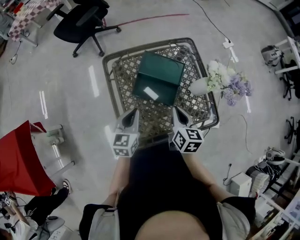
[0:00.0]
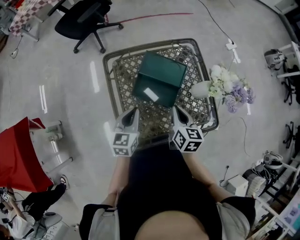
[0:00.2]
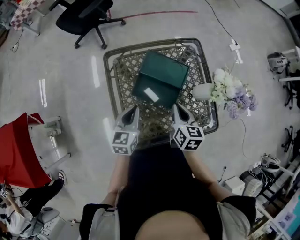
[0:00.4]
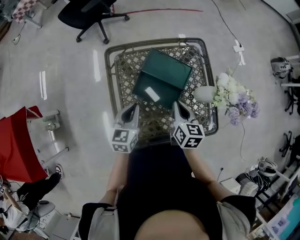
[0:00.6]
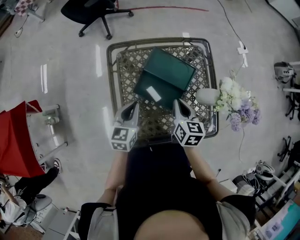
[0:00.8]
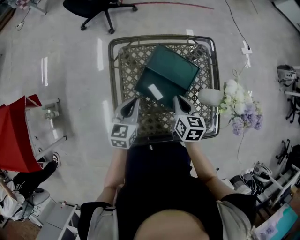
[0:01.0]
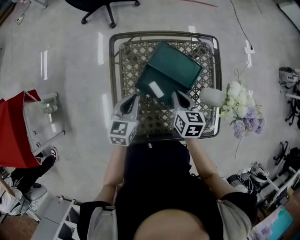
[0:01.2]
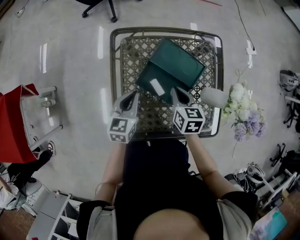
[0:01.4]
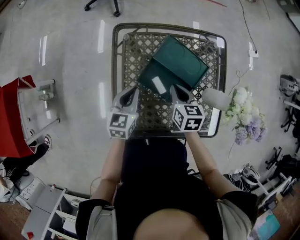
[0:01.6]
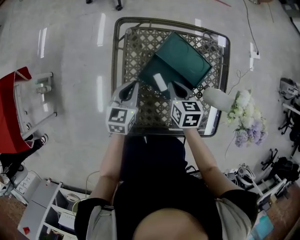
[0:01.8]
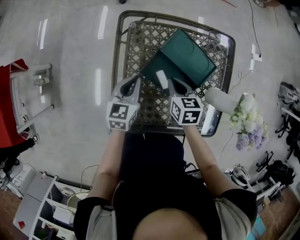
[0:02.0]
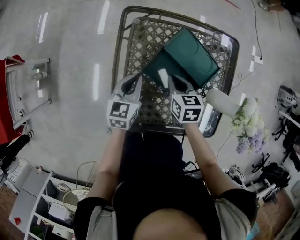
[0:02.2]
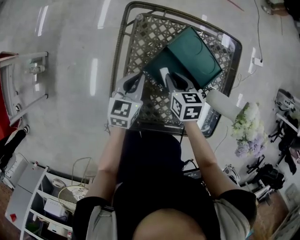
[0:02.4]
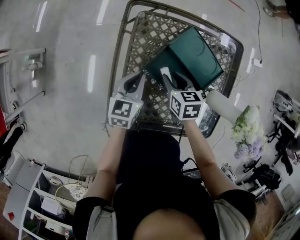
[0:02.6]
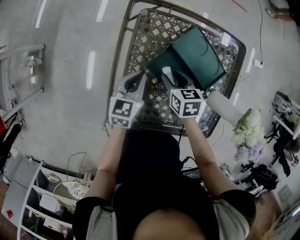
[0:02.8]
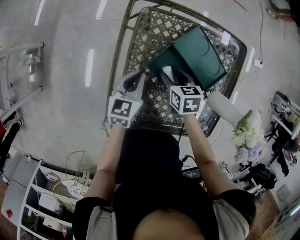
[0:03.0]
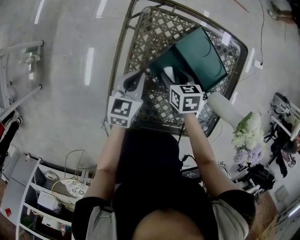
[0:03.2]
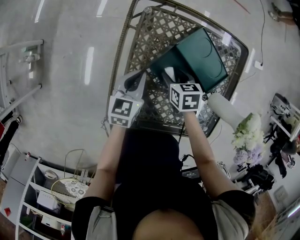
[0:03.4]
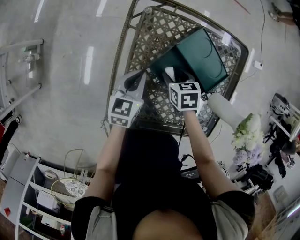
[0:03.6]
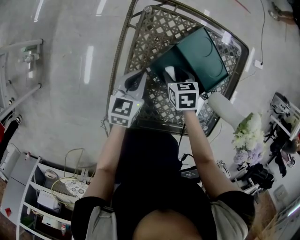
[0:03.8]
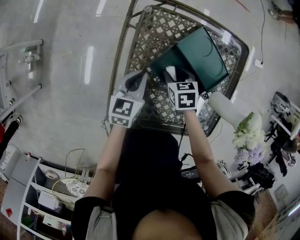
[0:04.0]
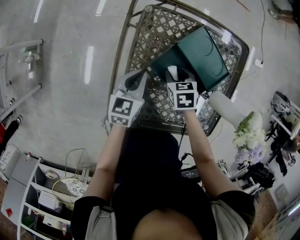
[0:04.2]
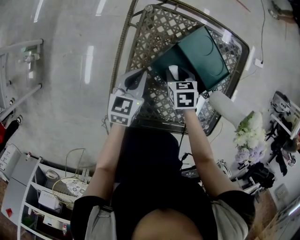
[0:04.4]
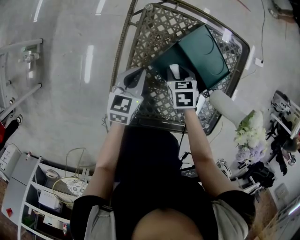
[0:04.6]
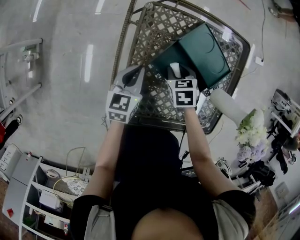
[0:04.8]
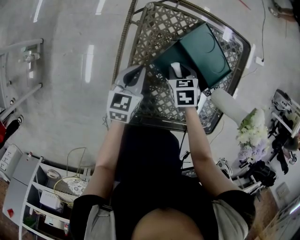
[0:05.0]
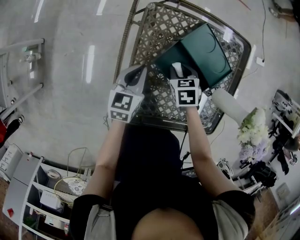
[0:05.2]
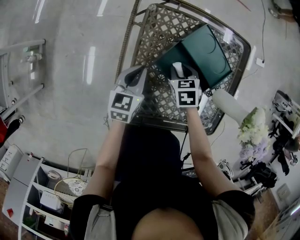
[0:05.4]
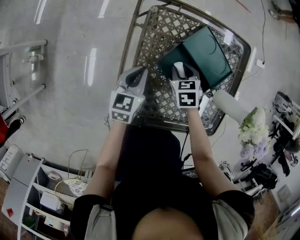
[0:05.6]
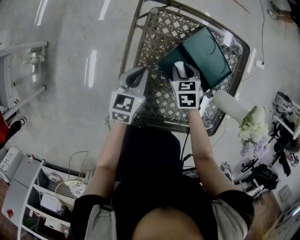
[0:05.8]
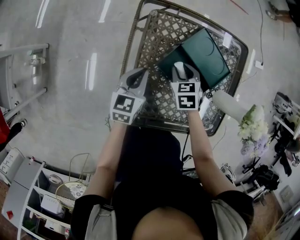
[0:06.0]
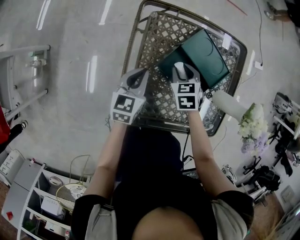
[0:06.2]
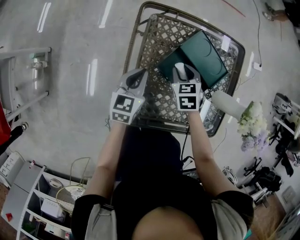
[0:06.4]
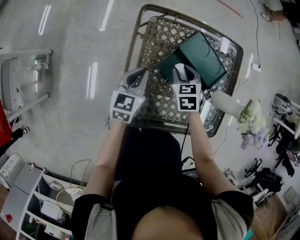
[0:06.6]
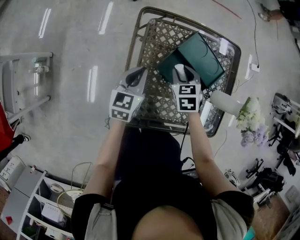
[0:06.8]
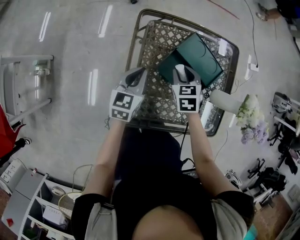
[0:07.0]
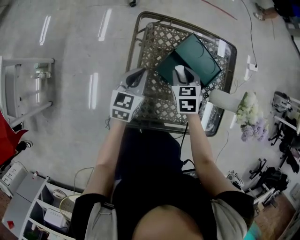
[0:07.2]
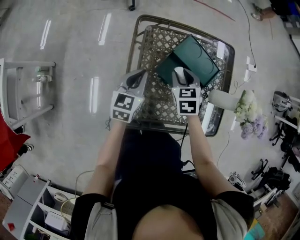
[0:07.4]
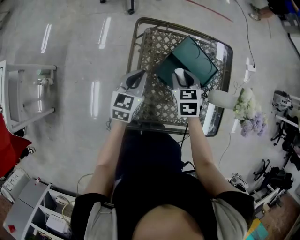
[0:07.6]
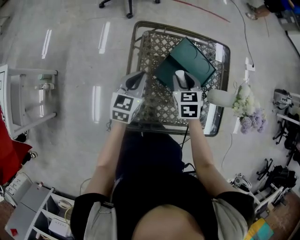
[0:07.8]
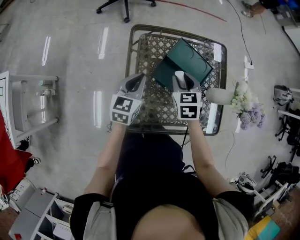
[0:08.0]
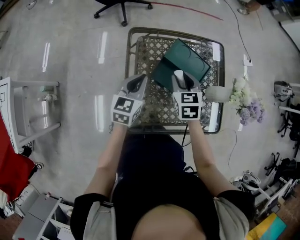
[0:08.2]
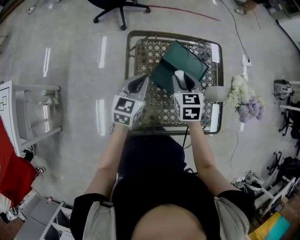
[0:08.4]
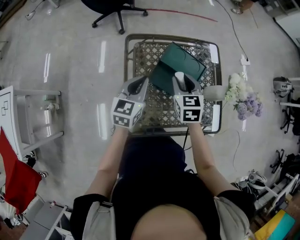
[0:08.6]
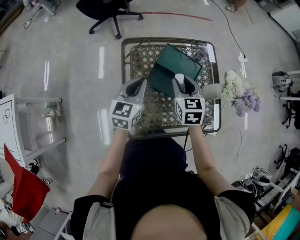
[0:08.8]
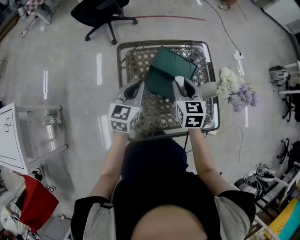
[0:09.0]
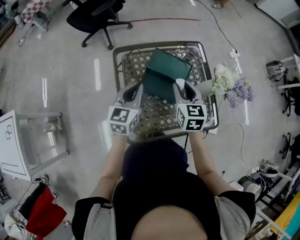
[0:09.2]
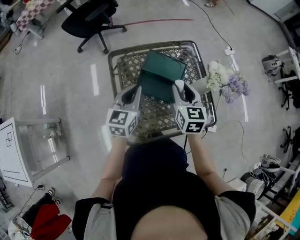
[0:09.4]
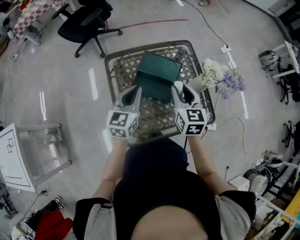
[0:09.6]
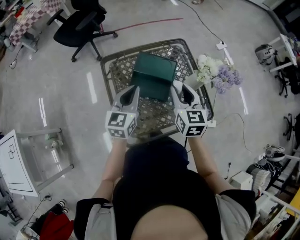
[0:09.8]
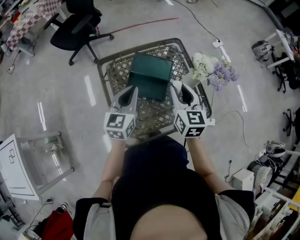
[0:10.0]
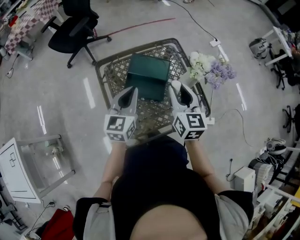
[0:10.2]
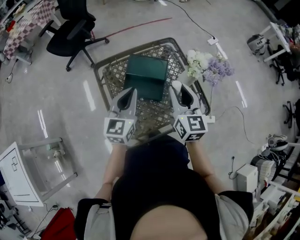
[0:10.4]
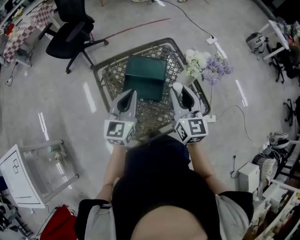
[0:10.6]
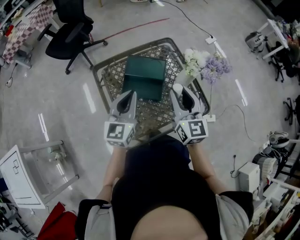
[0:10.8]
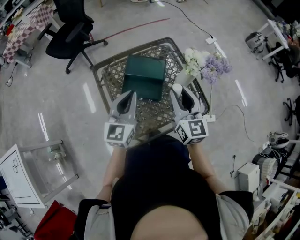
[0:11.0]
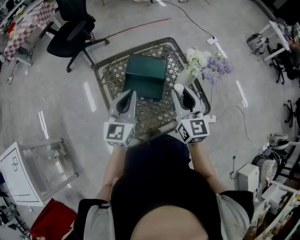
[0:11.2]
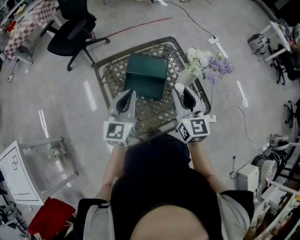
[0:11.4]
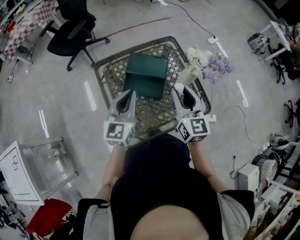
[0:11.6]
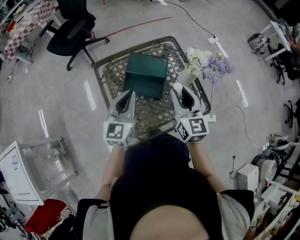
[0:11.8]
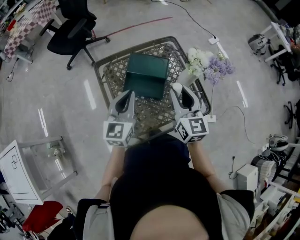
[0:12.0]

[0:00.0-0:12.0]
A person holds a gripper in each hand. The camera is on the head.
0:00.0 to 0:01.6: The right gripper moves forward and downward, approximately 15 cm, and changes its angle by about 30 degrees. Meanwhile the left gripper moves downward and forward, roughly 10 cm.
0:01.6 to 0:03.0: The left gripper is displaced downward by about 5 cm. Meanwhile the right gripper is displaced downward and to the left by approximately 10 cm, swivels roughly 20 degrees, and opens up.
0:03.0 to 0:04.4: The grippers stay close to where they were, moving slightly.
0:04.4 to 0:06.0: The grippers move only a little.
0:06.0 to 0:07.6: The grippers both shift upward by roughly 10 cm.
0:07.6 to 0:09.0: The grippers both shift upward and to the right by some 10 cm. The right gripper swivels some 20 degrees.
0:09.0 to 0:10.4: The left gripper heads to the right and upward, covering some 10 cm. The right gripper travels to the right, upward and backward by about 15 cm, and changes its angle by roughly 30 degrees.
0:10.4 to 0:12.0: The grippers stay close to where they were, moving slightly.

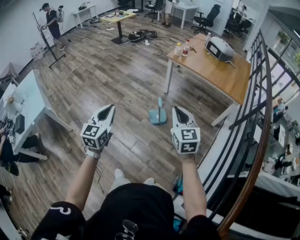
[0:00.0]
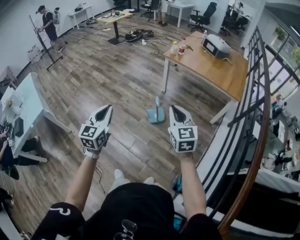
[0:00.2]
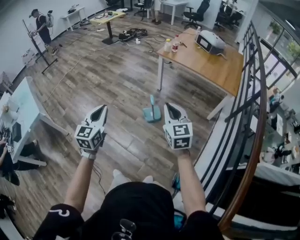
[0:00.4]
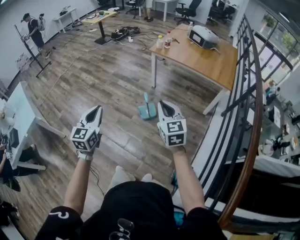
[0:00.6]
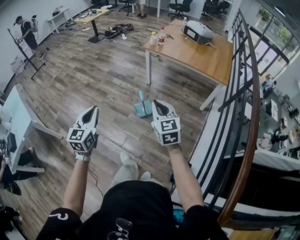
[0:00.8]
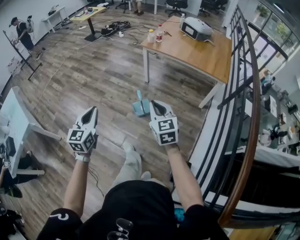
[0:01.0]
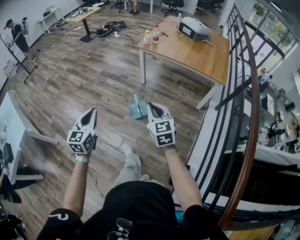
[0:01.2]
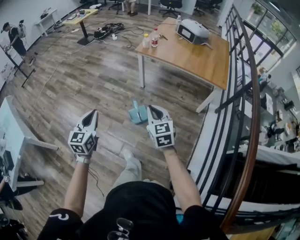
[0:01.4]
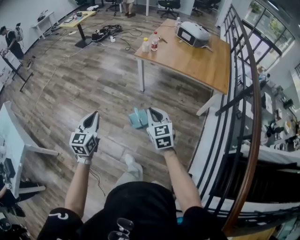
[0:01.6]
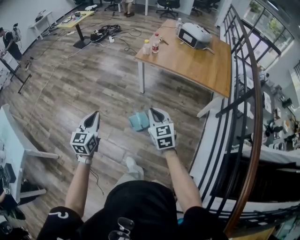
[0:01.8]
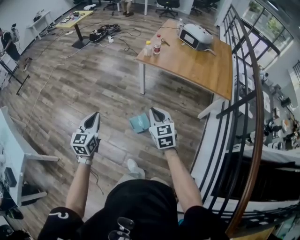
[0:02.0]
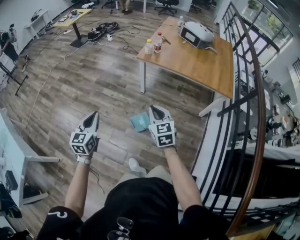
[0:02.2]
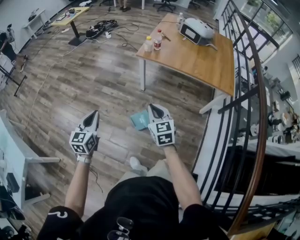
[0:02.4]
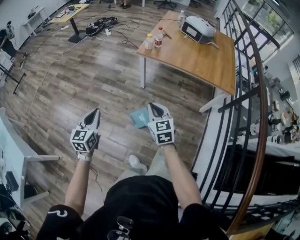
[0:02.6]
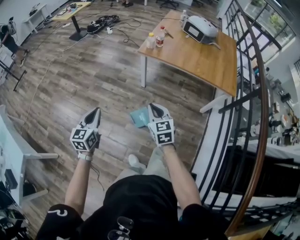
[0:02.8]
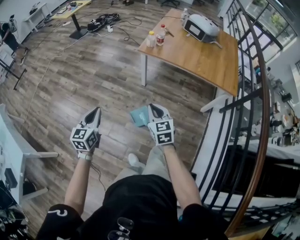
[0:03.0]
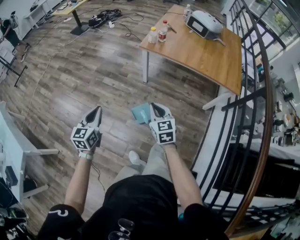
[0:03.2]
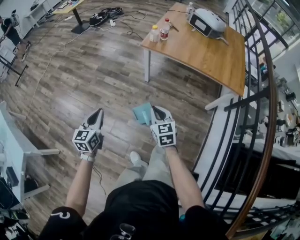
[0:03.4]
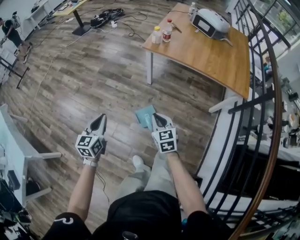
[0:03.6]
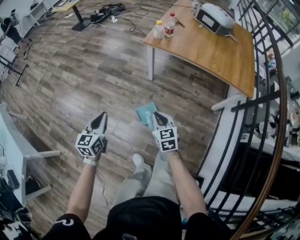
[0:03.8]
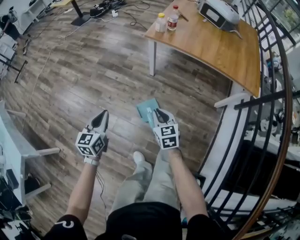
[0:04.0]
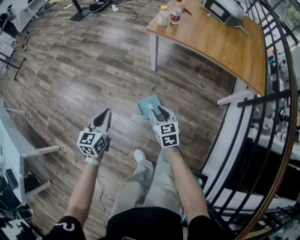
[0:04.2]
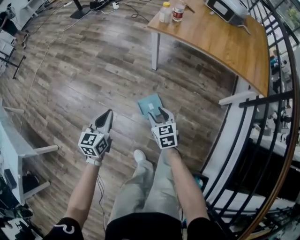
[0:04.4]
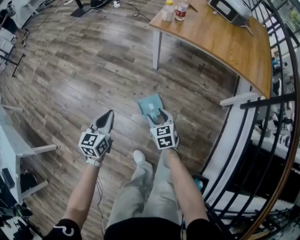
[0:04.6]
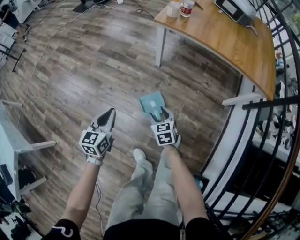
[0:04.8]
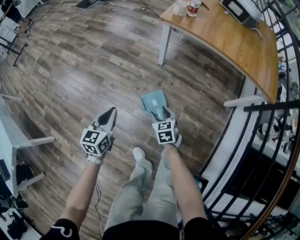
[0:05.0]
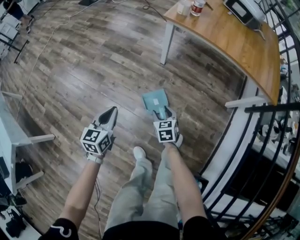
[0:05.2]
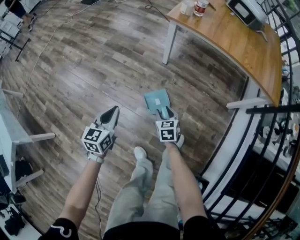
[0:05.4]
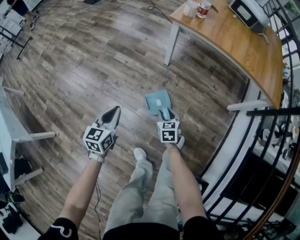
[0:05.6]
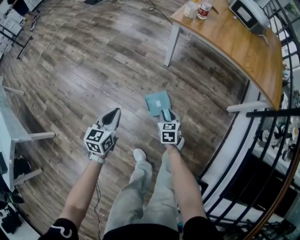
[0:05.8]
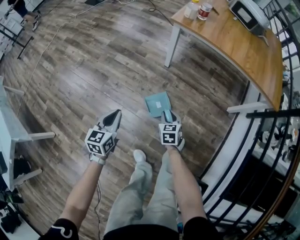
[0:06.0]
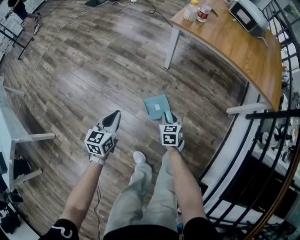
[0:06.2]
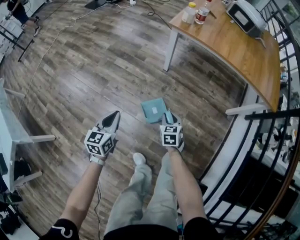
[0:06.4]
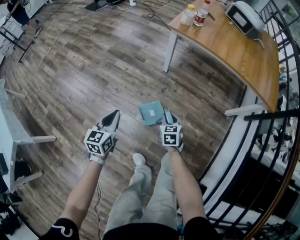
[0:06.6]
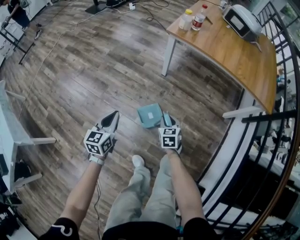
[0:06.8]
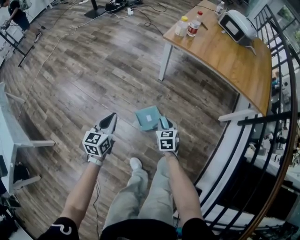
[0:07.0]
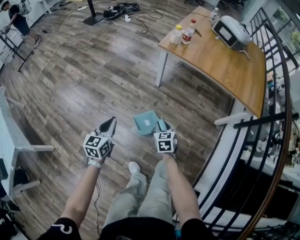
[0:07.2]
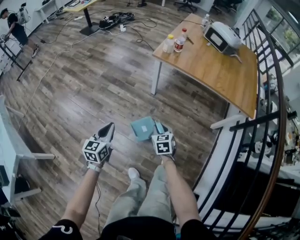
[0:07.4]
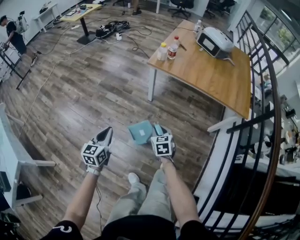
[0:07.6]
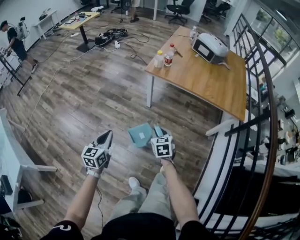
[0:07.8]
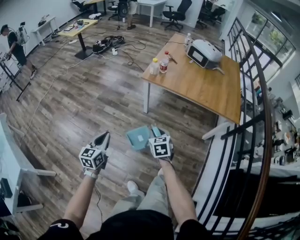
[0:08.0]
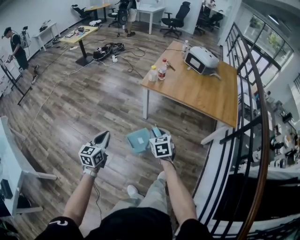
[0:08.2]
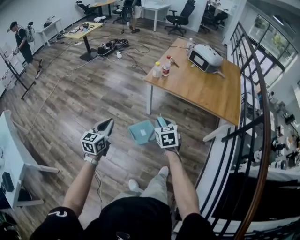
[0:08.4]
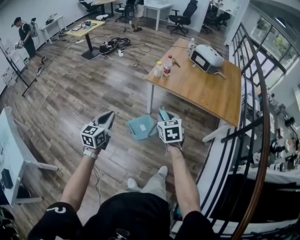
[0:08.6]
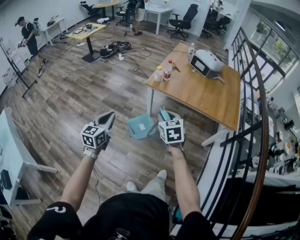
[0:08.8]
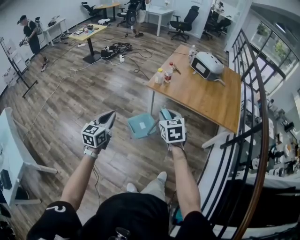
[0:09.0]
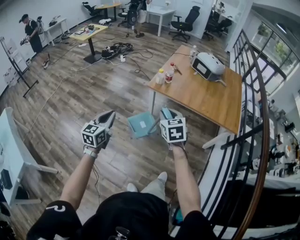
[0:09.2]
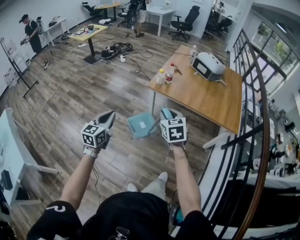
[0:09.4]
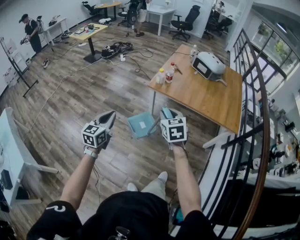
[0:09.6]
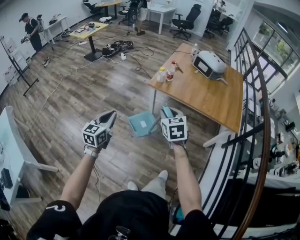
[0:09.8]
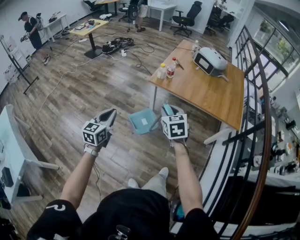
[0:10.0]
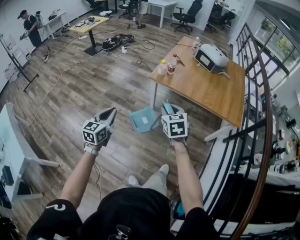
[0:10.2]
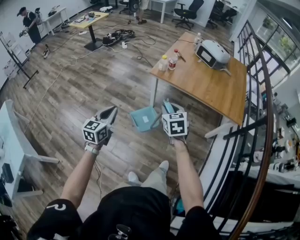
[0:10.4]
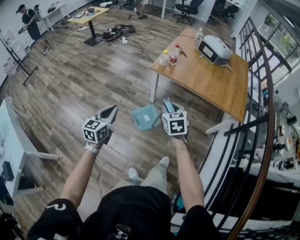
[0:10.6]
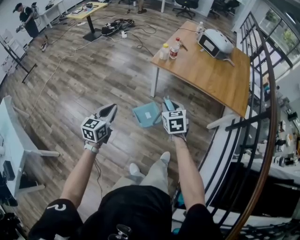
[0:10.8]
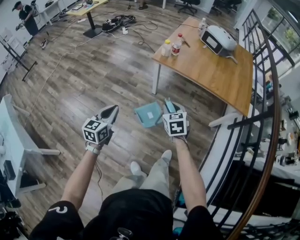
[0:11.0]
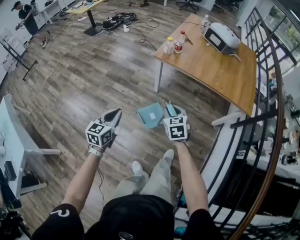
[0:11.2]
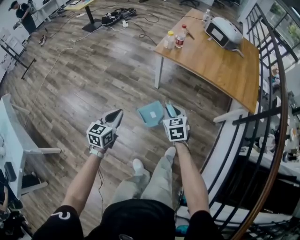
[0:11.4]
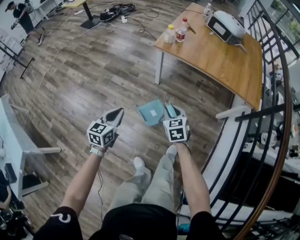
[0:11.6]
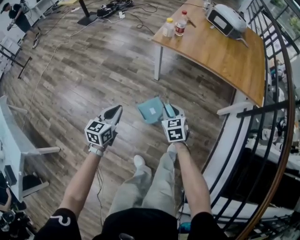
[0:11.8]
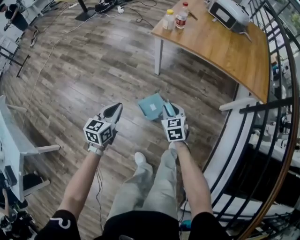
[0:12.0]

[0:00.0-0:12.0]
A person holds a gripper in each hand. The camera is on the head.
0:00.0 to 0:01.6: The left gripper moves forward, about 20 cm. The right gripper heads forward and downward, covering approximately 20 cm.
0:01.6 to 0:03.0: Both grippers travel together forward, downward and to the left, approximately 15 cm.
0:03.0 to 0:04.4: The two grippers go roughly 25 cm downward. The right gripper opens its fingers.
0:04.4 to 0:06.0: The right gripper moves downward, about 15 cm, and closes its fingers, while the left gripper goes approximately 10 cm downward.
0:06.0 to 0:07.6: Both grippers travel together upward, roughly 20 cm.
0:07.6 to 0:09.0: The right gripper travels upward by about 30 cm. The left gripper travels upward by roughly 20 cm.
0:09.0 to 0:10.4: The right gripper is displaced downward by about 5 cm.
0:10.4 to 0:12.0: The grippers both shift downward by roughly 25 cm.
